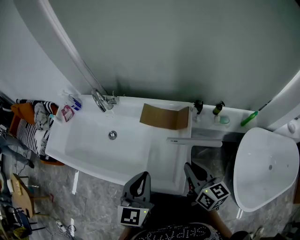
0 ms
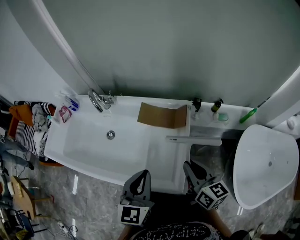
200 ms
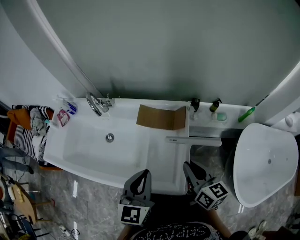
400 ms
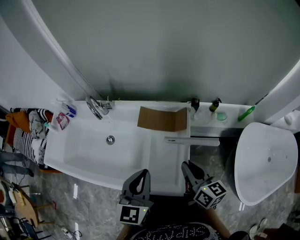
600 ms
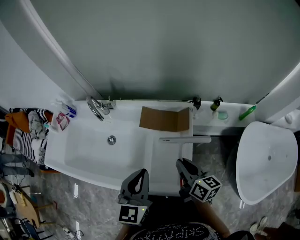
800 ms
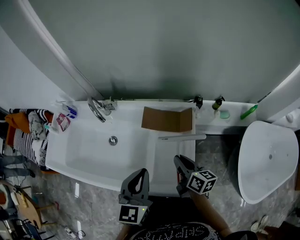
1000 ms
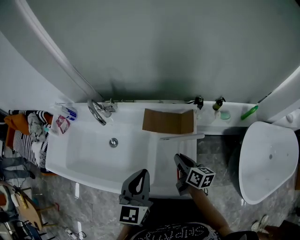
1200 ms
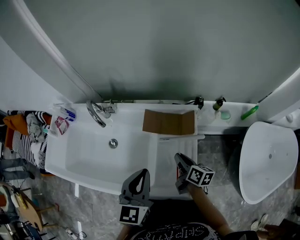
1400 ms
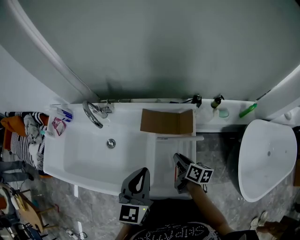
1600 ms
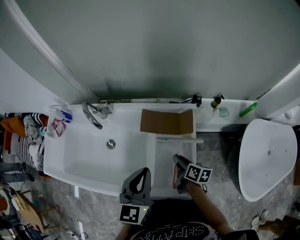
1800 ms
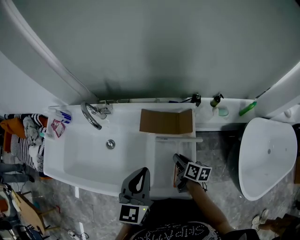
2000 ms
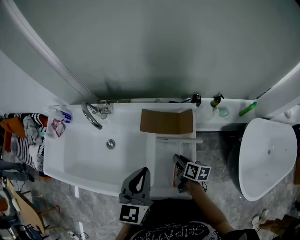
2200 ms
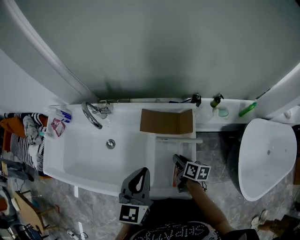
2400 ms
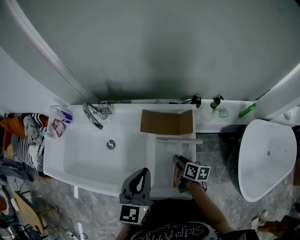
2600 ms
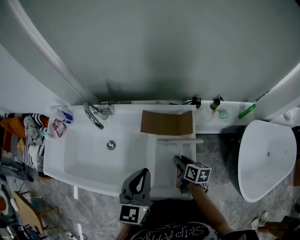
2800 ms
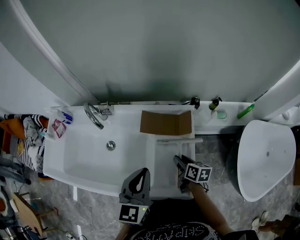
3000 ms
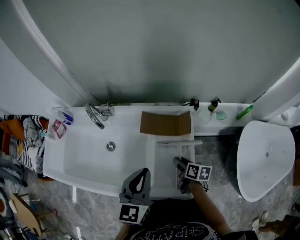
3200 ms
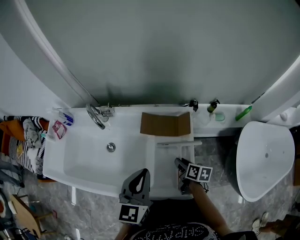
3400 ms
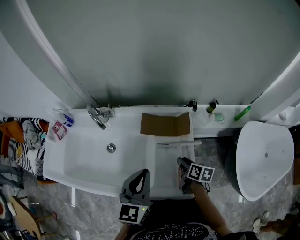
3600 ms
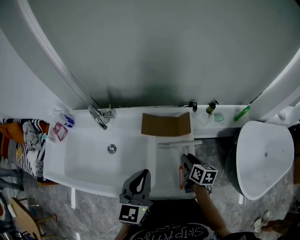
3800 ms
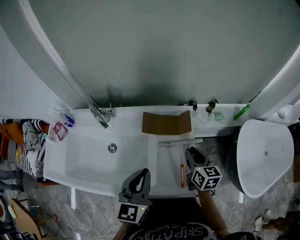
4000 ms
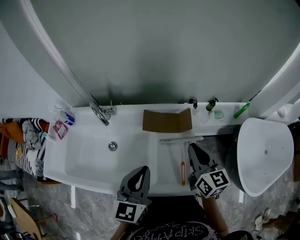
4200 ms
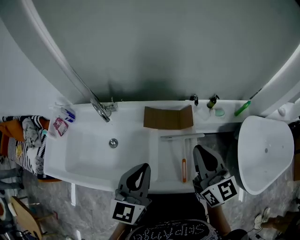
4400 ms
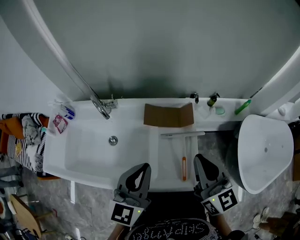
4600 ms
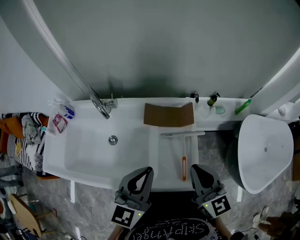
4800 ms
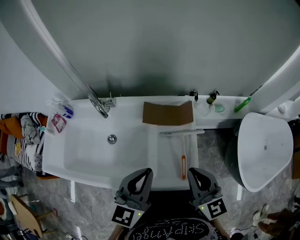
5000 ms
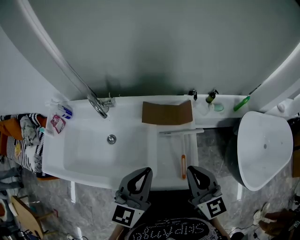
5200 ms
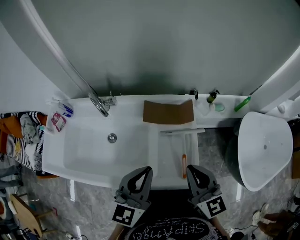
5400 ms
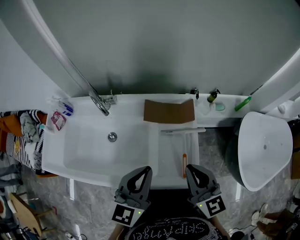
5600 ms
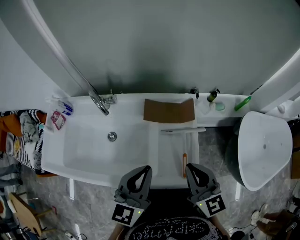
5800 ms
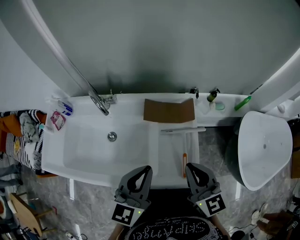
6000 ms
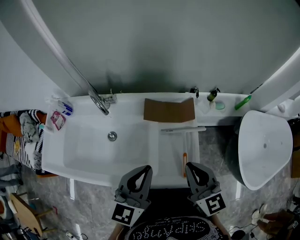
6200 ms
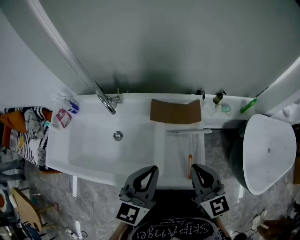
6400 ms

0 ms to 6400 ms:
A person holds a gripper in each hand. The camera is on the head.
0 ms to 1600 ms: The left gripper travels forward by about 10 cm; the right gripper shifts some 20 cm downward and forward, and changes its angle by about 30 degrees.
1600 ms to 3200 ms: The grippers stay close to where they were, moving slightly.
3200 ms to 4800 ms: The left gripper goes some 5 cm upward; the right gripper goes some 25 cm upward, rolls counterclockwise, seen from behind, by about 40 degrees, and closes its fingers.
4800 ms to 6400 ms: The grippers make only small movements.

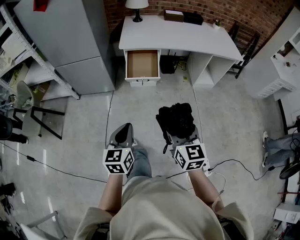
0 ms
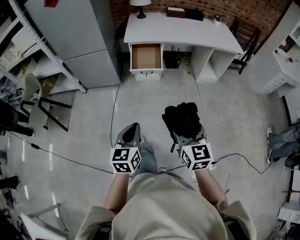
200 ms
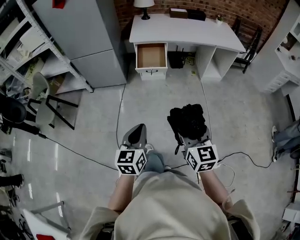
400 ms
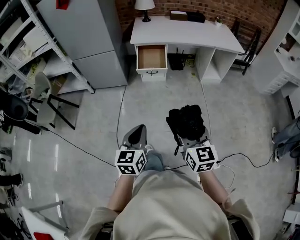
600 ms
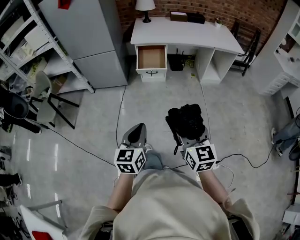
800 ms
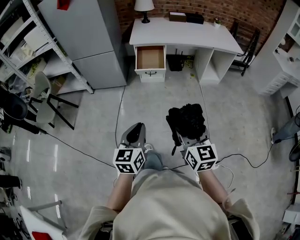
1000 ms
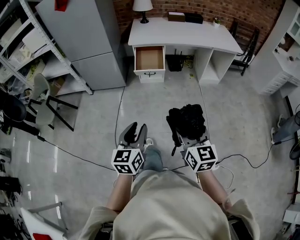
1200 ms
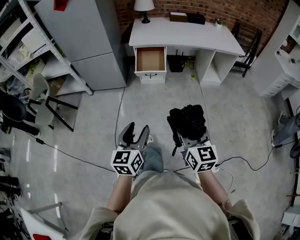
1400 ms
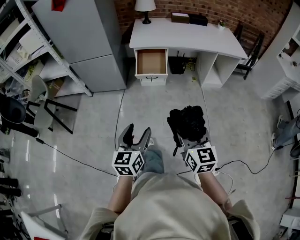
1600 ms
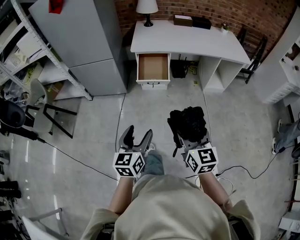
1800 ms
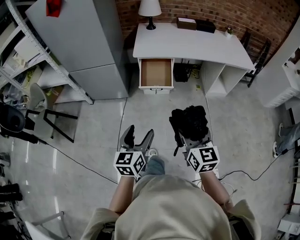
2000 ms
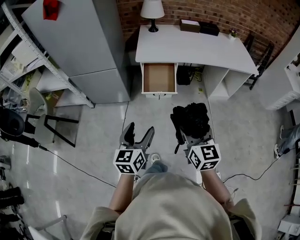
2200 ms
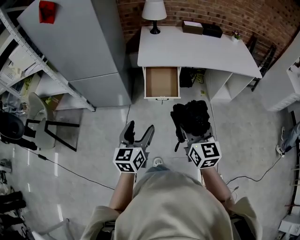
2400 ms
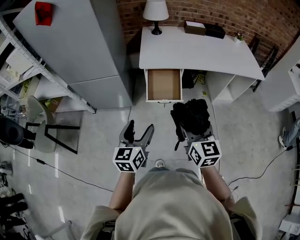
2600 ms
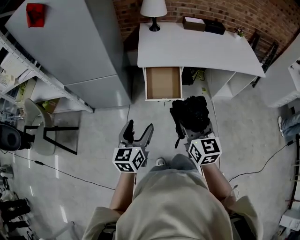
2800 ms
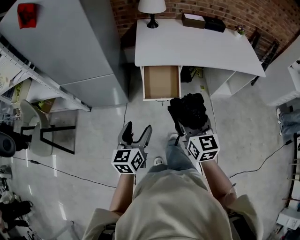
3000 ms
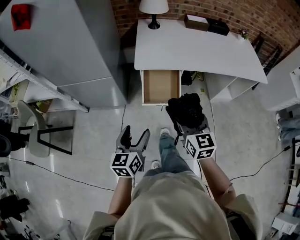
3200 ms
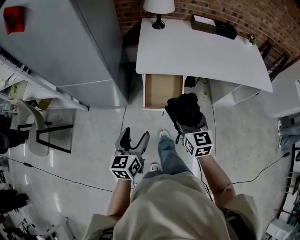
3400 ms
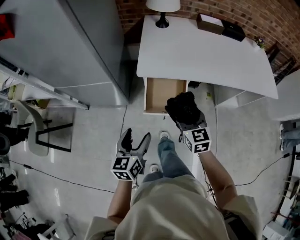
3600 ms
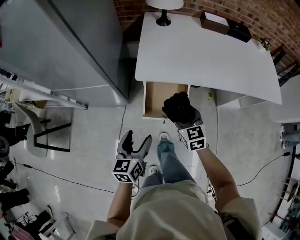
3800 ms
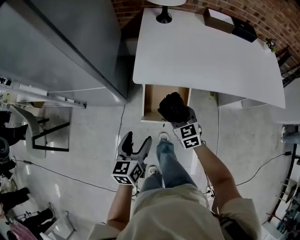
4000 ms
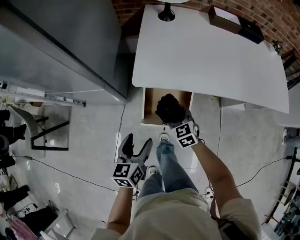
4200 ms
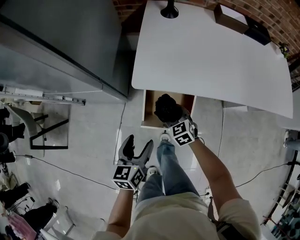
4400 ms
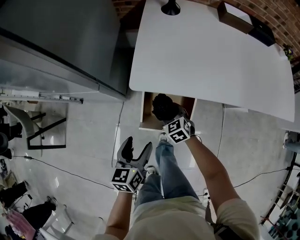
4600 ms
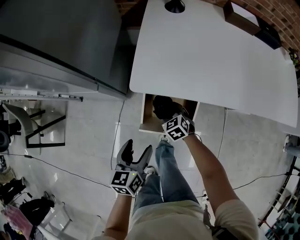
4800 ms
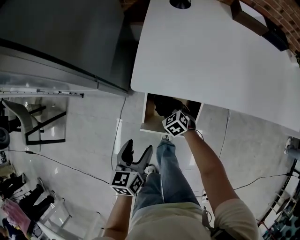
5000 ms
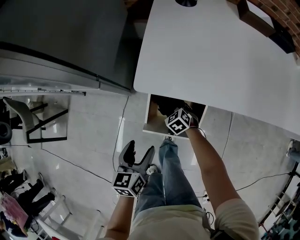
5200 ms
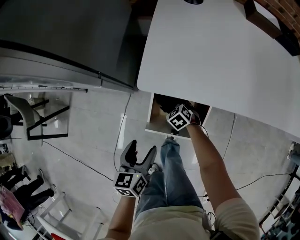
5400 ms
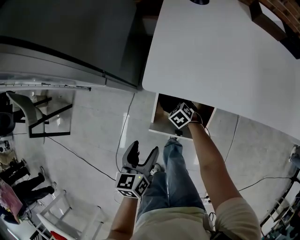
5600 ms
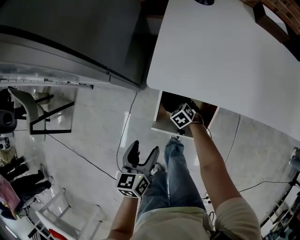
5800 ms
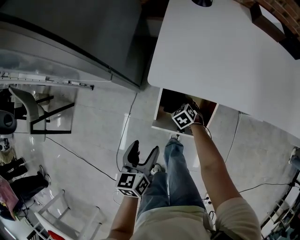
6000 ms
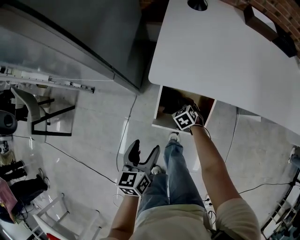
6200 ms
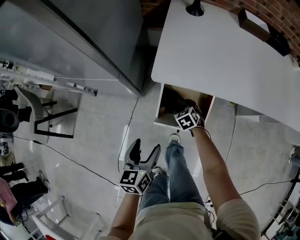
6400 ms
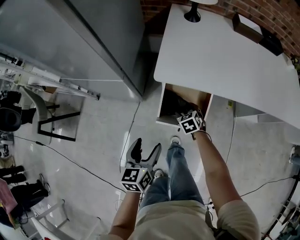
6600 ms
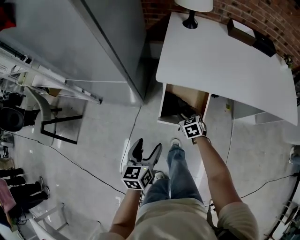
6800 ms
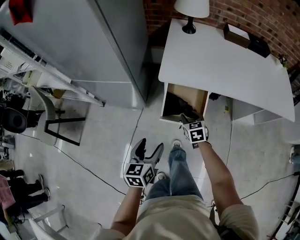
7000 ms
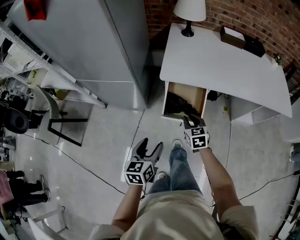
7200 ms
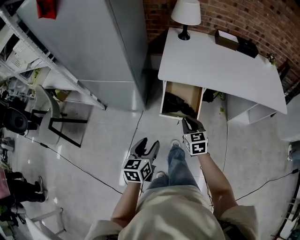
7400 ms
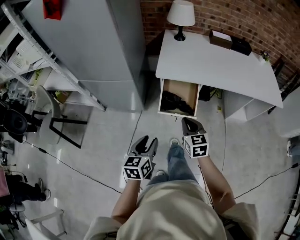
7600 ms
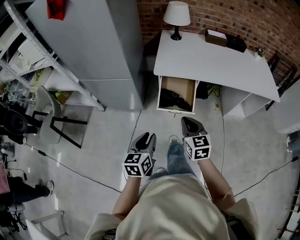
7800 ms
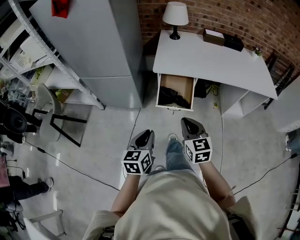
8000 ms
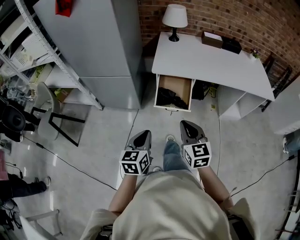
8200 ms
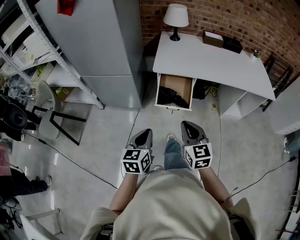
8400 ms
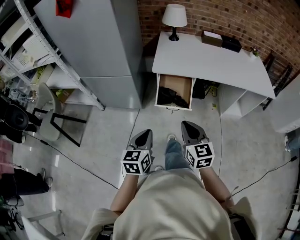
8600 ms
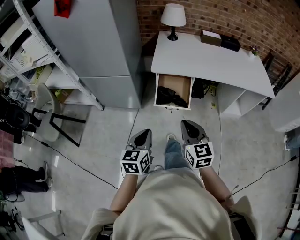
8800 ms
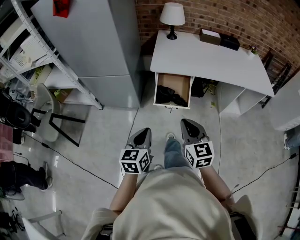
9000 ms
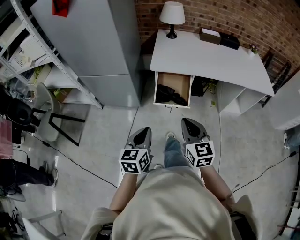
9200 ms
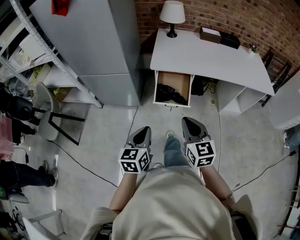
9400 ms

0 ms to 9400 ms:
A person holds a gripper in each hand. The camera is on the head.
0 ms to 1600 ms: The two grippers go about 10 cm backward. The left gripper opens.
1600 ms to 3200 ms: The grippers both shift forward by roughly 40 cm.
3200 ms to 4800 ms: The left gripper heads forward and downward, covering approximately 25 cm, while the right gripper is displaced downward and forward by roughly 50 cm, and tilts its fingers approximately 40 degrees downward.
4800 ms to 6200 ms: The right gripper moves downward, approximately 5 cm.
6200 ms to 7800 ms: The left gripper shifts roughly 25 cm backward and upward, and closes. Meanwhile the right gripper is displaced upward and backward by roughly 50 cm, tilts its fingers about 40 degrees upward, and closes up.
7800 ms to 9400 ms: The right gripper travels backward and upward by approximately 10 cm. The left gripper ends up about 5 cm from where it was.

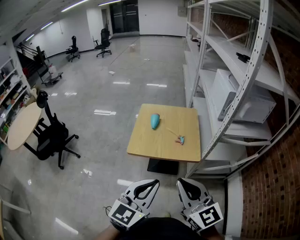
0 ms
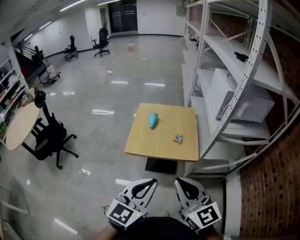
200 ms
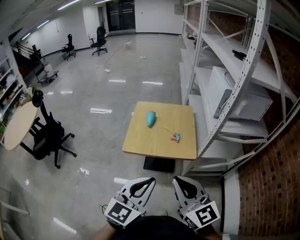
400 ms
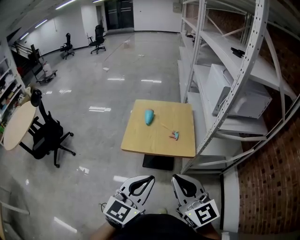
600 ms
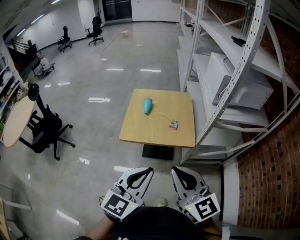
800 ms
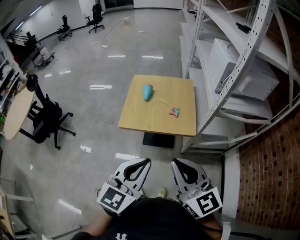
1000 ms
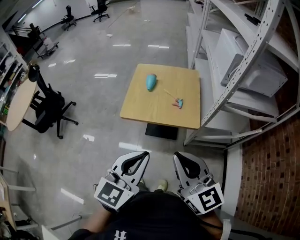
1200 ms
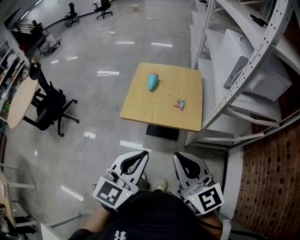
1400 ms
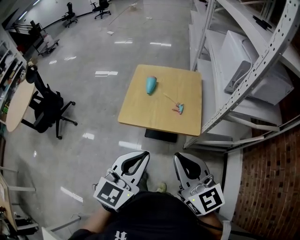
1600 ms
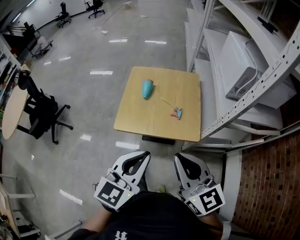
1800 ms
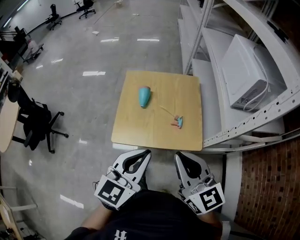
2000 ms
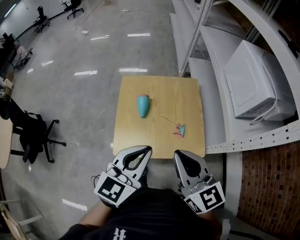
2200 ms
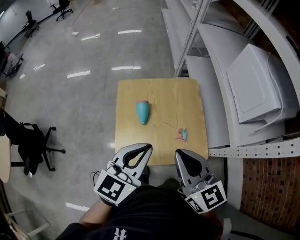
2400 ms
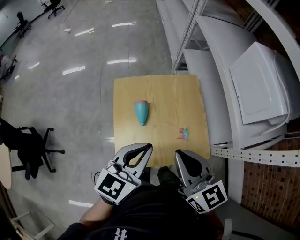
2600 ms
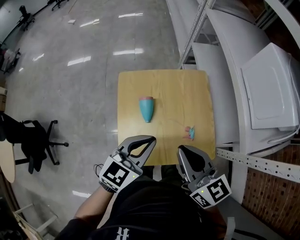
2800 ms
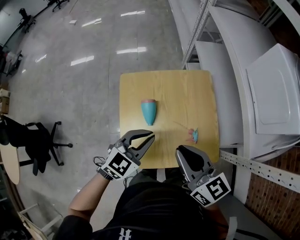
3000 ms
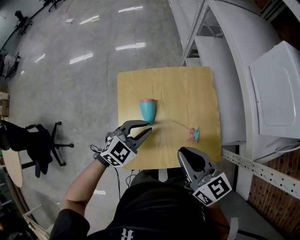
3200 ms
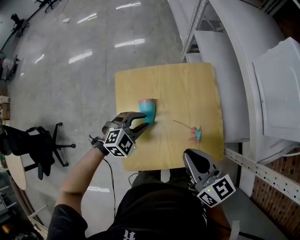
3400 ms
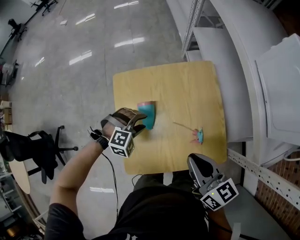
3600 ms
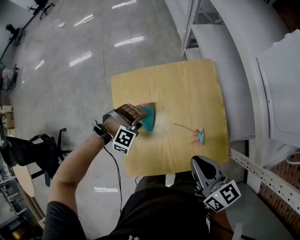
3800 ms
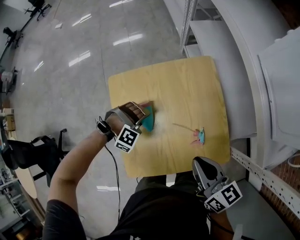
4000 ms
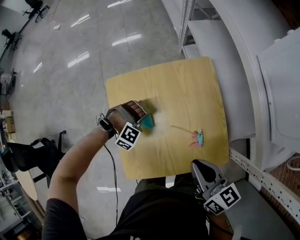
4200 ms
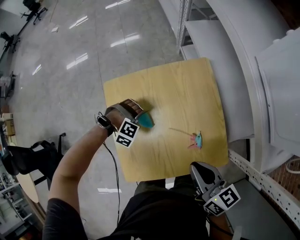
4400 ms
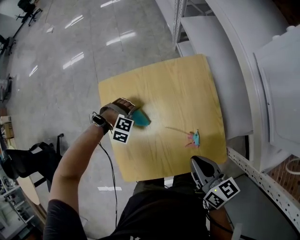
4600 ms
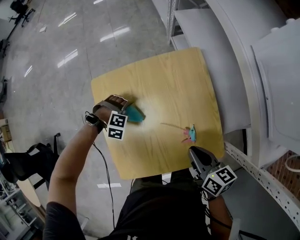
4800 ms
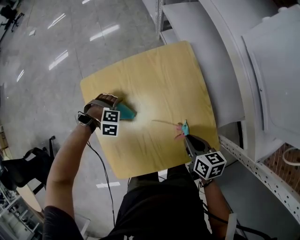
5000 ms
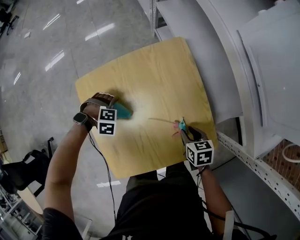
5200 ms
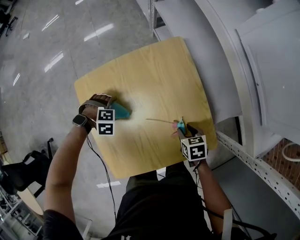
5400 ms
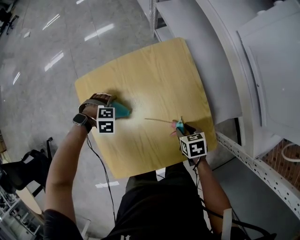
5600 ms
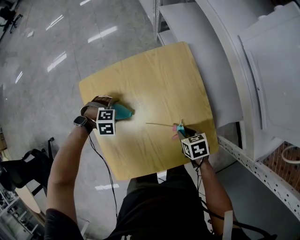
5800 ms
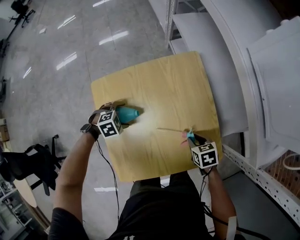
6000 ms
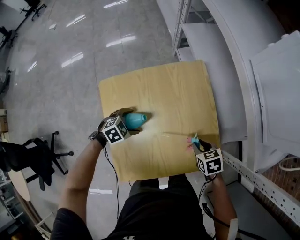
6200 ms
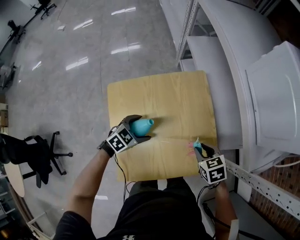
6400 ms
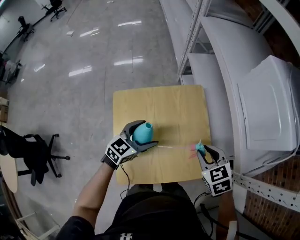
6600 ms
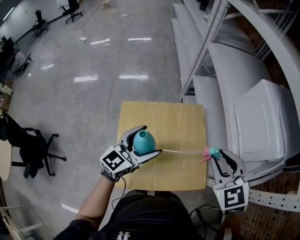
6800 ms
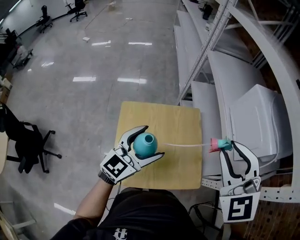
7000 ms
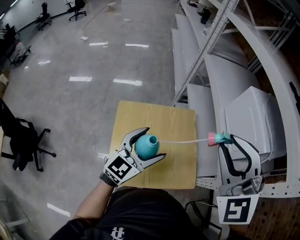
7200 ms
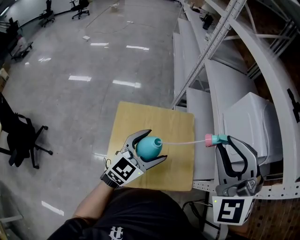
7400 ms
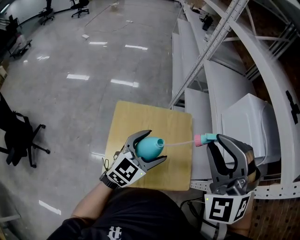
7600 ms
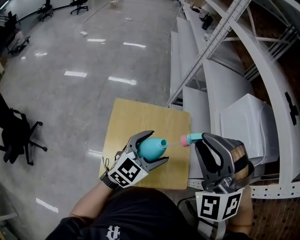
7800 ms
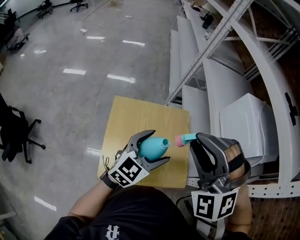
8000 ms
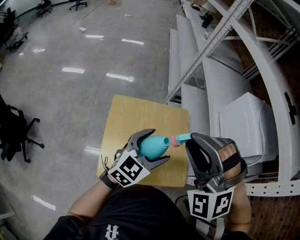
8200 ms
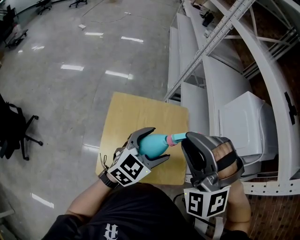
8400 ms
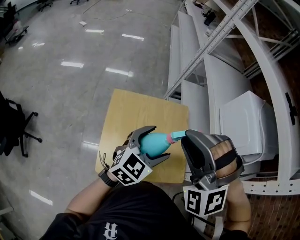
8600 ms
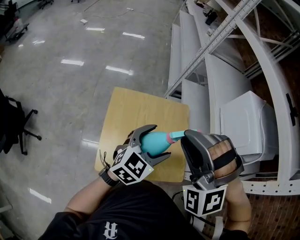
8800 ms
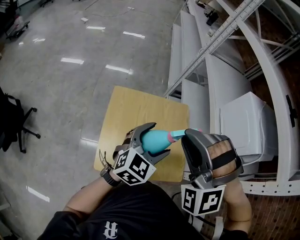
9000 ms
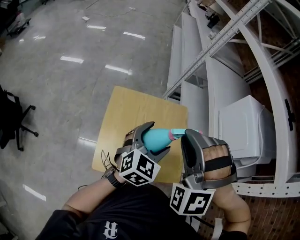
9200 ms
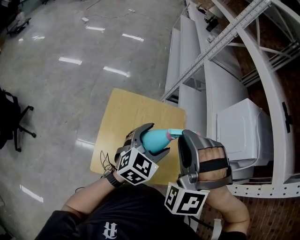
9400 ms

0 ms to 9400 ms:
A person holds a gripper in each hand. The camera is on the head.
0 ms to 1600 ms: The grippers both shift forward by approximately 10 cm.
1600 ms to 3200 ms: Both grippers are carried forward, roughly 50 cm. The right gripper swivels some 30 degrees; the left gripper shifts roughly 25 cm downward, and rotates approximately 50 degrees.
3200 ms to 4800 ms: Both grippers move downward, about 20 cm. The right gripper turns by approximately 30 degrees, while the left gripper tilts its fingers about 50 degrees downward, and opens its fingers.
4800 ms to 6200 ms: The right gripper shifts some 10 cm downward, tilts its fingers roughly 30 degrees downward, and opens its fingers. The left gripper shifts by approximately 5 cm, and twists some 50 degrees counterclockwise, seen from behind.
6200 ms to 7800 ms: Both grippers move upward, about 50 cm. The left gripper points its fingers roughly 50 degrees further upward, while the right gripper twists some 90 degrees counterclockwise, seen from behind.
7800 ms to 9400 ms: The right gripper travels downward by roughly 5 cm, and rotates some 20 degrees.
